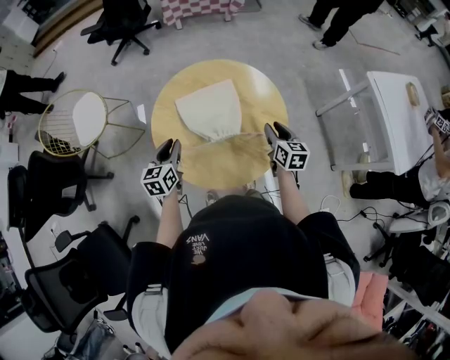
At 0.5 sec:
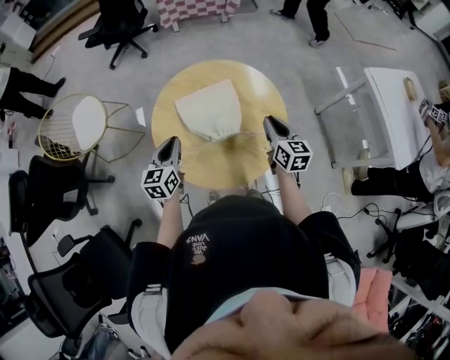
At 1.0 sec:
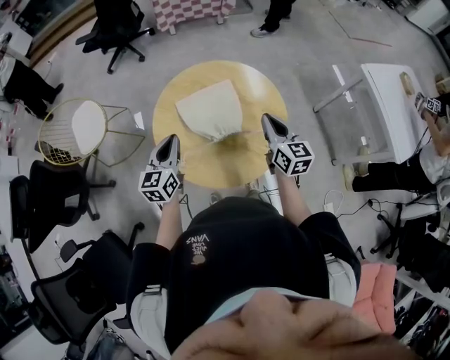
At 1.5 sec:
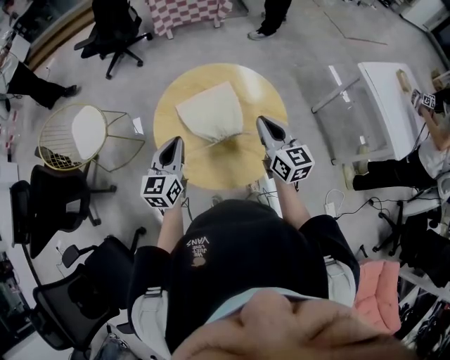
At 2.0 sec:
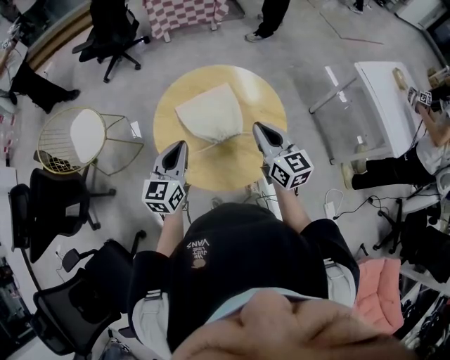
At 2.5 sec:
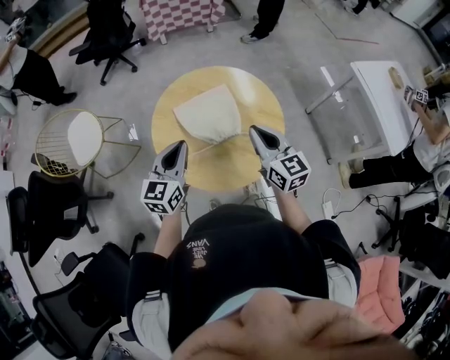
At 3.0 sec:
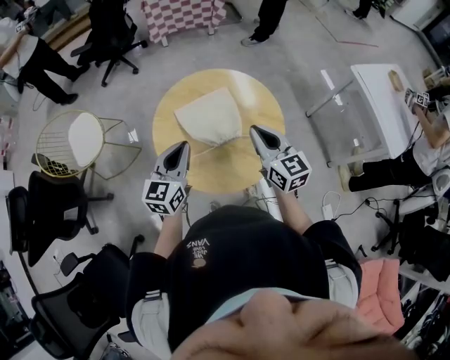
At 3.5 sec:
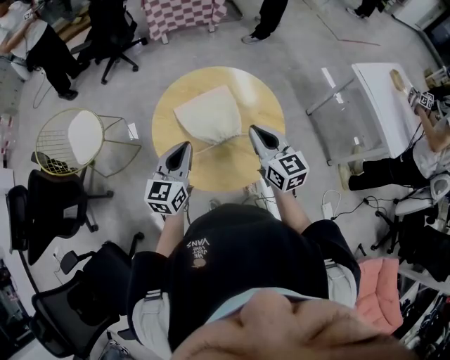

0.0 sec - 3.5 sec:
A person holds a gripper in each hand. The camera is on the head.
0.0 sec - 2.0 sec: The left gripper shifts about 10 cm upward, swivels about 20 degrees, and closes up, while the right gripper heads upward, to the left and backward, covering some 20 cm, rotates approximately 20 degrees, and closes up.
2.0 sec - 3.5 sec: There are only small adjustments of the grippers.

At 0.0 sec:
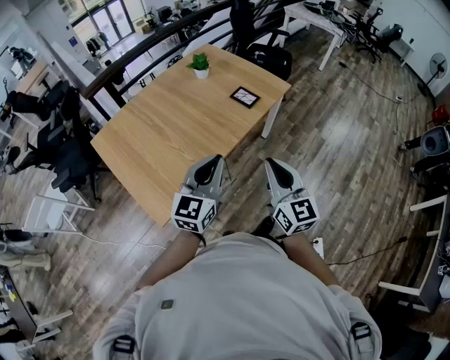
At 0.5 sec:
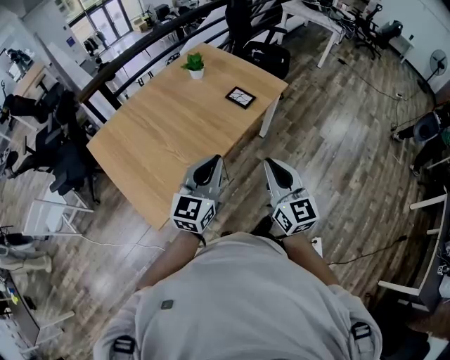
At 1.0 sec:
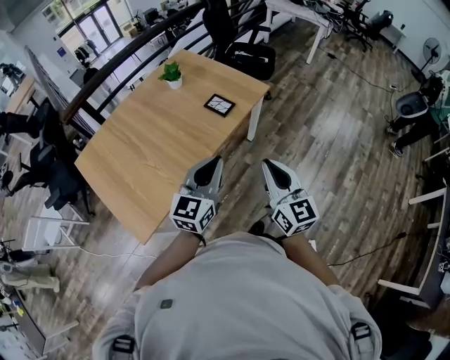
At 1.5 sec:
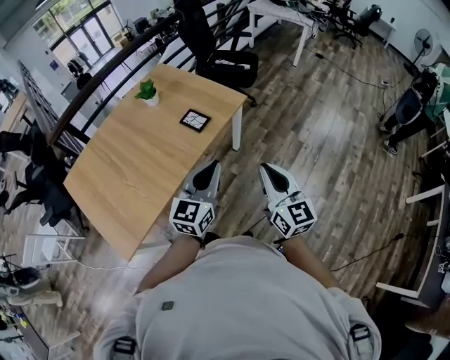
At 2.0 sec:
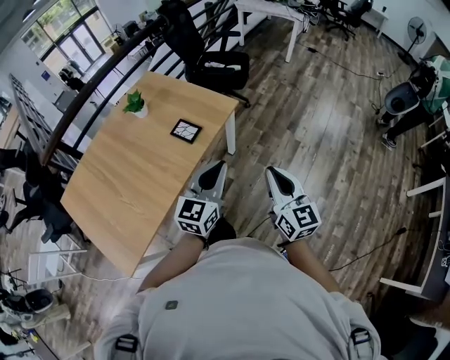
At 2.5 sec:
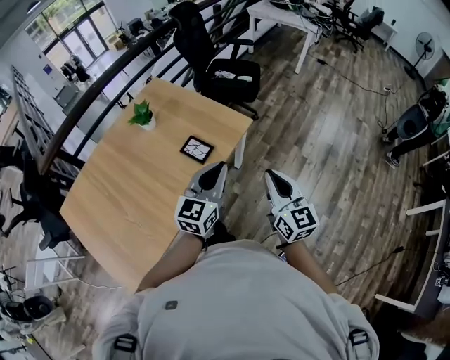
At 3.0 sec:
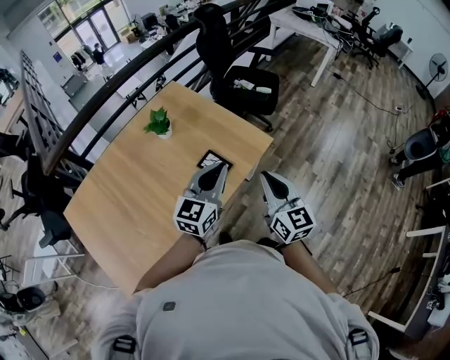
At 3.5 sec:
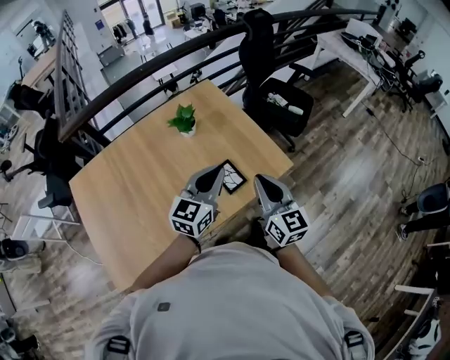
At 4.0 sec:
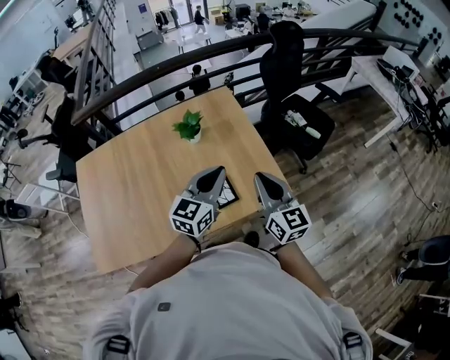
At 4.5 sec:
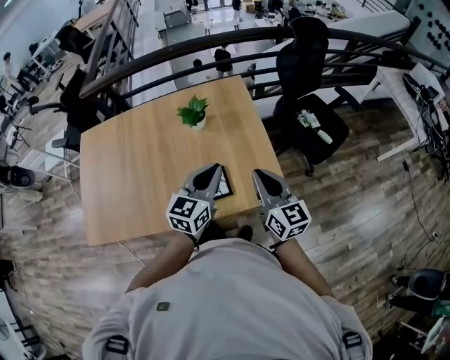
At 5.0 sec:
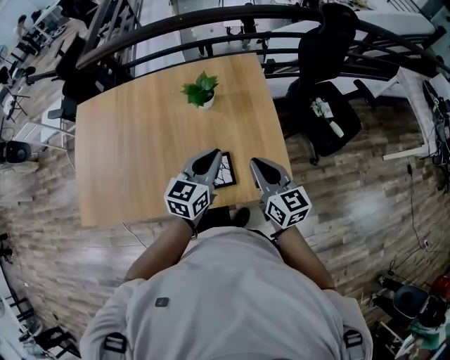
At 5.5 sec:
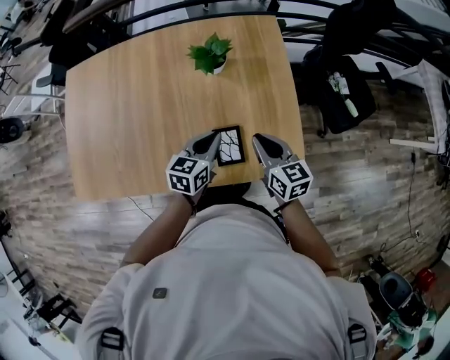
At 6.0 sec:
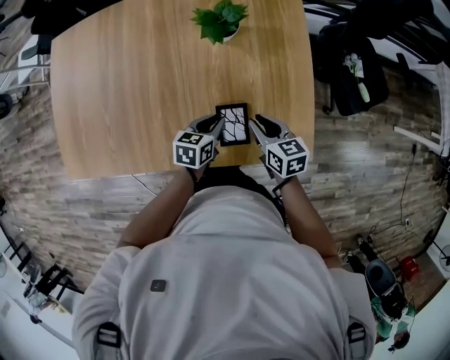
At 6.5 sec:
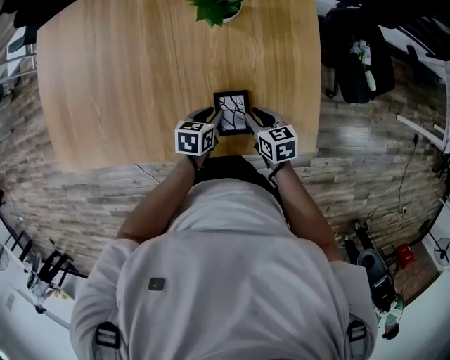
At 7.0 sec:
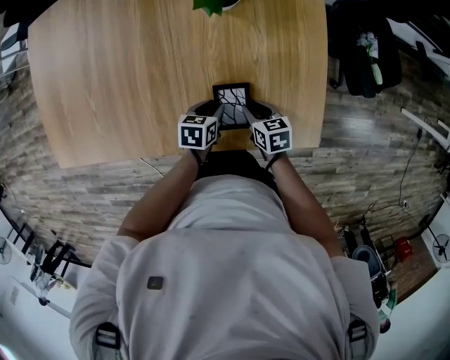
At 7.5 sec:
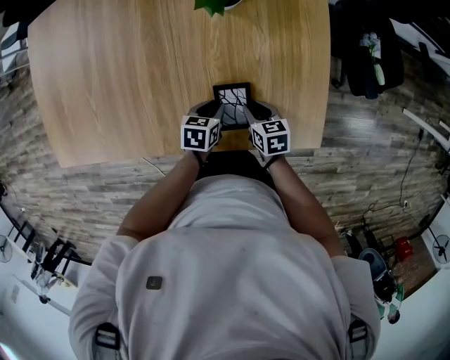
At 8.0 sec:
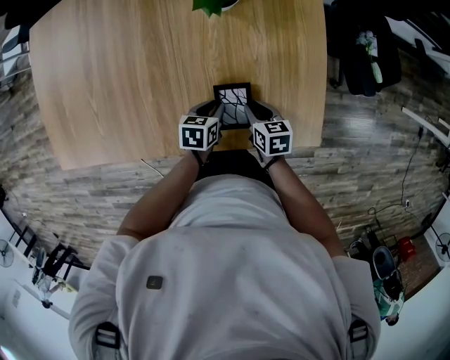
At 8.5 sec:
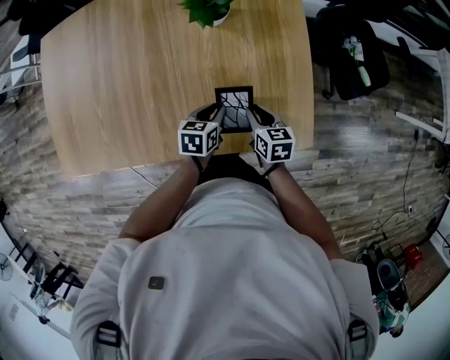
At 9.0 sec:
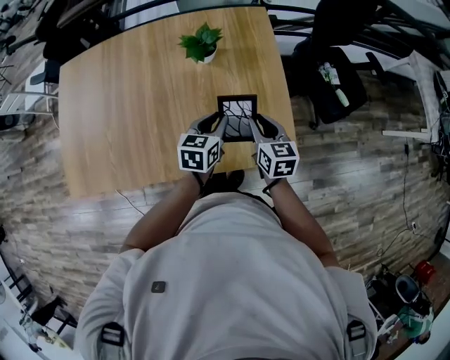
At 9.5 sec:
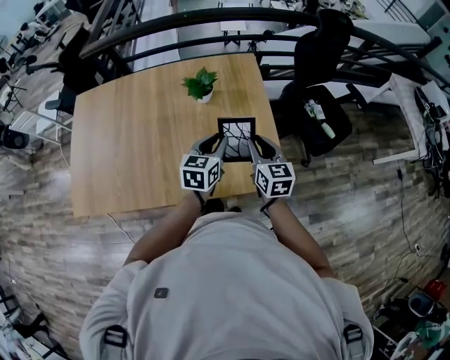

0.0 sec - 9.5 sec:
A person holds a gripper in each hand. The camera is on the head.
0.0 sec - 2.0 sec: The grippers both shift to the right and forward by some 35 cm.
2.0 sec - 4.0 sec: Both grippers are carried about 40 cm. The left gripper changes its angle by roughly 30 degrees. Meanwhile the right gripper changes its angle by approximately 40 degrees.
4.0 sec - 5.5 sec: The left gripper heads downward, covering roughly 20 cm, and rotates some 30 degrees, while the right gripper is displaced downward and forward by some 20 cm, and rotates roughly 30 degrees.
5.5 sec - 7.5 sec: Both grippers move downward, roughly 25 cm. The right gripper swivels about 30 degrees. Meanwhile the left gripper rotates some 30 degrees, and opens up.
7.5 sec - 9.5 sec: Both grippers travel together upward, roughly 30 cm. The right gripper tilts its fingers approximately 30 degrees upward. Meanwhile the left gripper tips its fingers upward by about 30 degrees.

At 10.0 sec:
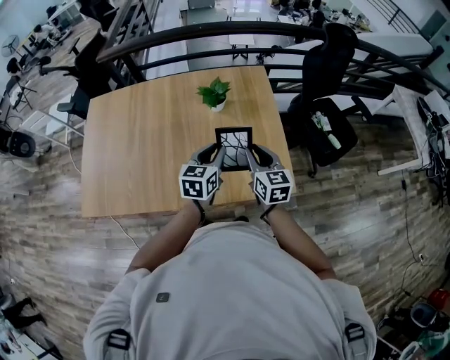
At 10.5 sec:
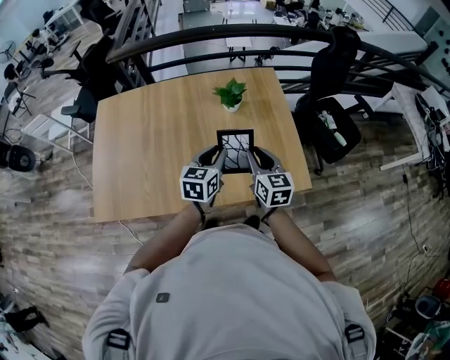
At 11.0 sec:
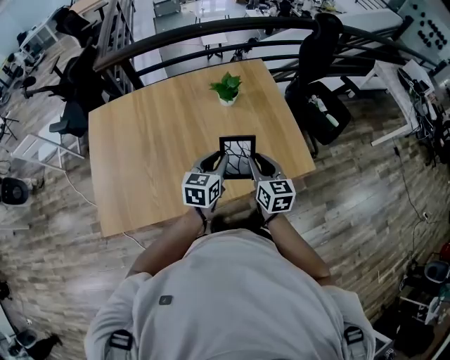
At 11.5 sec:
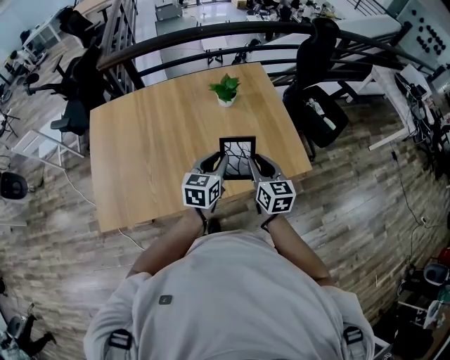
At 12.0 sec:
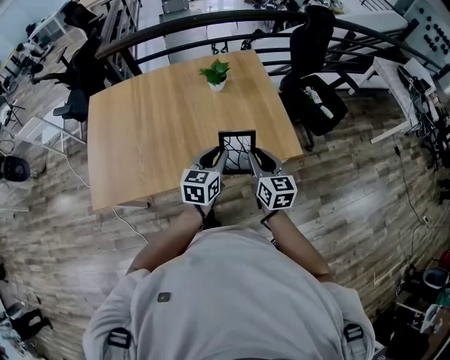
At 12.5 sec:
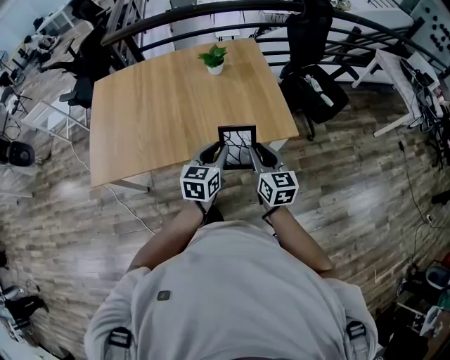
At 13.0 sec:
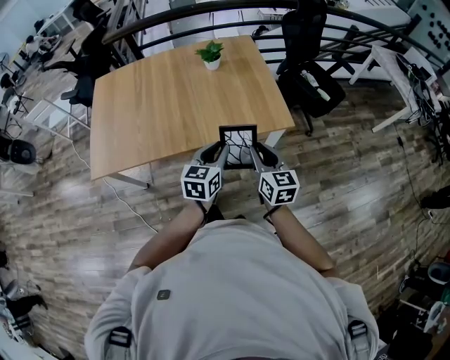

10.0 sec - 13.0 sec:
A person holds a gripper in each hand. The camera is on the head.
10.0 sec - 11.5 sec: The left gripper shifts some 15 cm to the left and backward. Meanwhile the right gripper travels backward and to the left by roughly 15 cm.
11.5 sec - 13.0 sec: Both grippers move backward and to the right, roughly 25 cm.

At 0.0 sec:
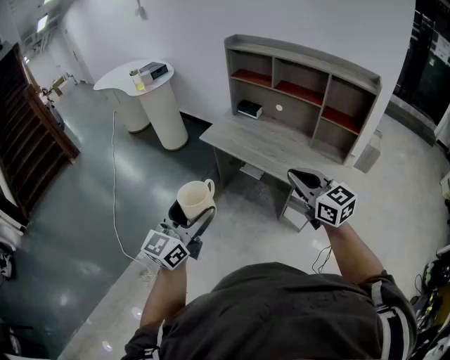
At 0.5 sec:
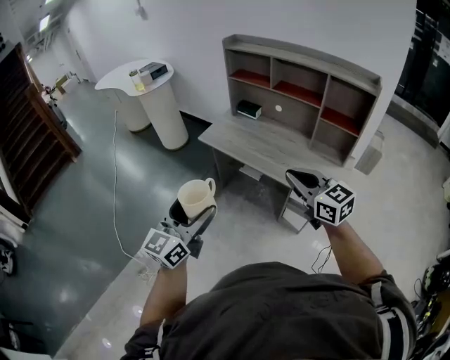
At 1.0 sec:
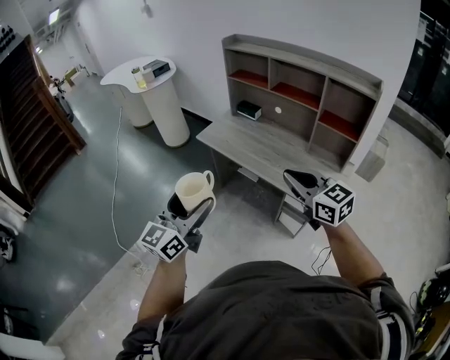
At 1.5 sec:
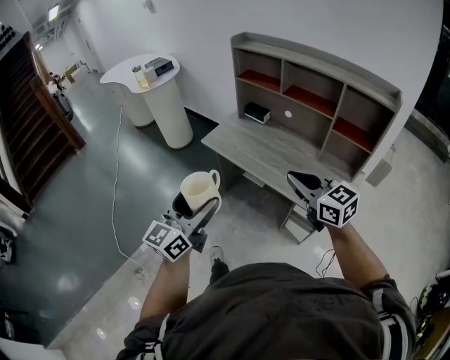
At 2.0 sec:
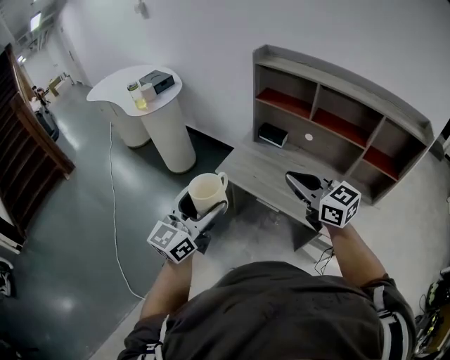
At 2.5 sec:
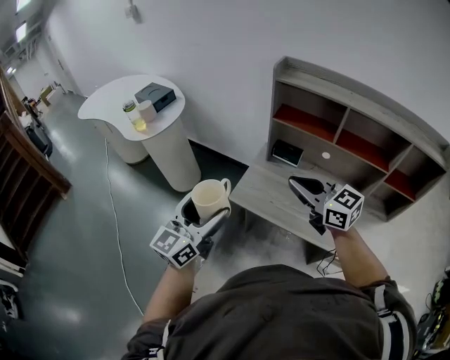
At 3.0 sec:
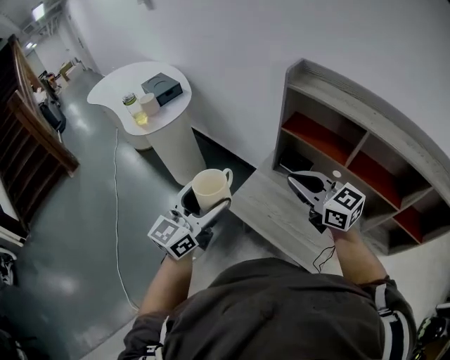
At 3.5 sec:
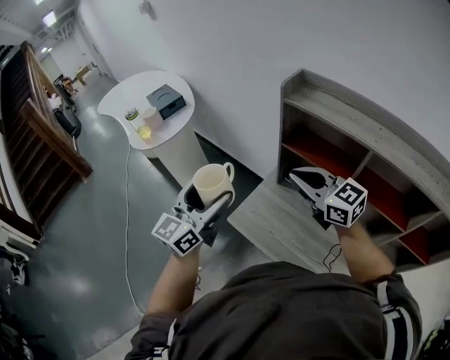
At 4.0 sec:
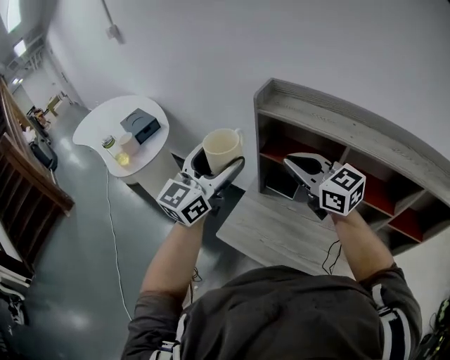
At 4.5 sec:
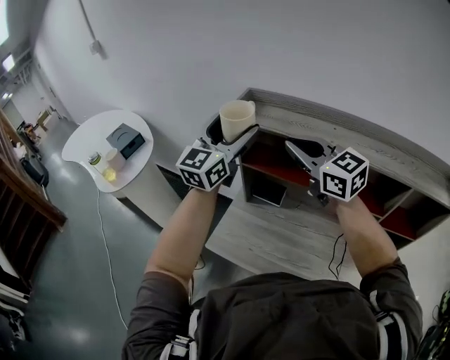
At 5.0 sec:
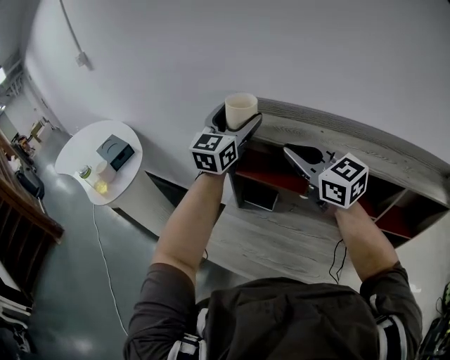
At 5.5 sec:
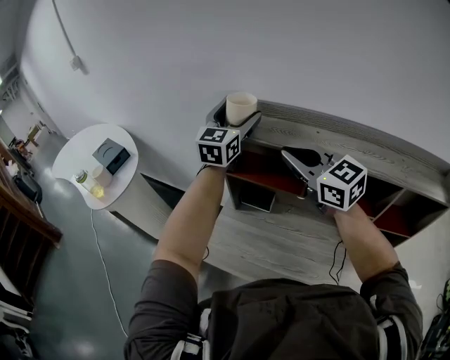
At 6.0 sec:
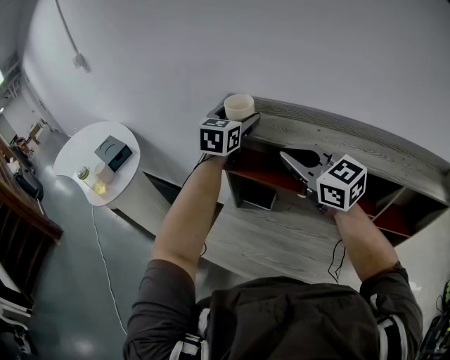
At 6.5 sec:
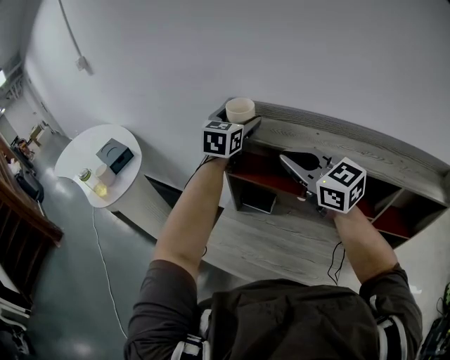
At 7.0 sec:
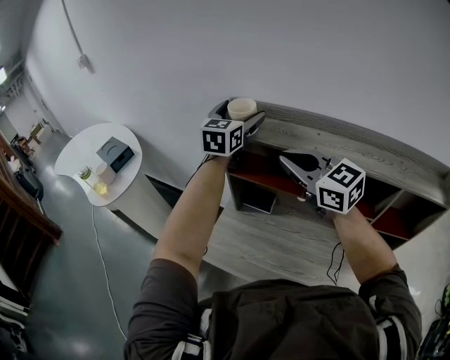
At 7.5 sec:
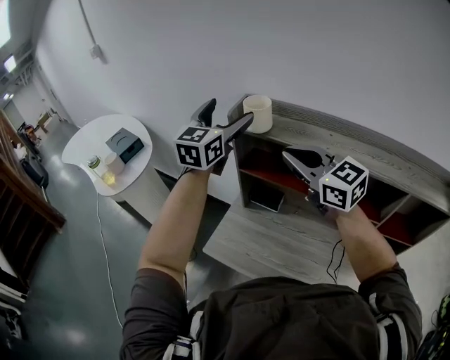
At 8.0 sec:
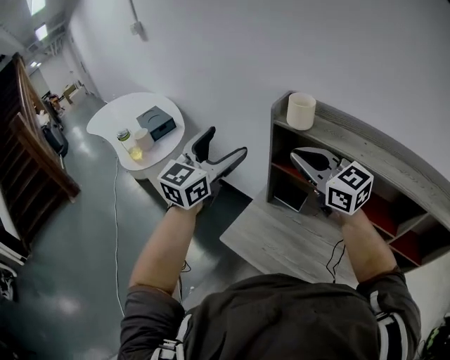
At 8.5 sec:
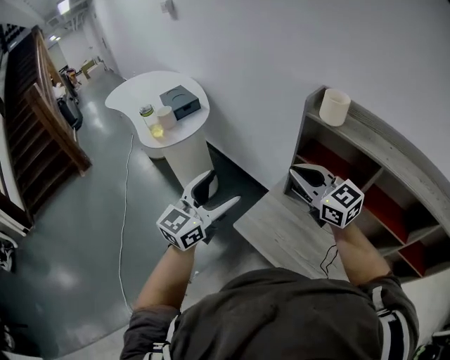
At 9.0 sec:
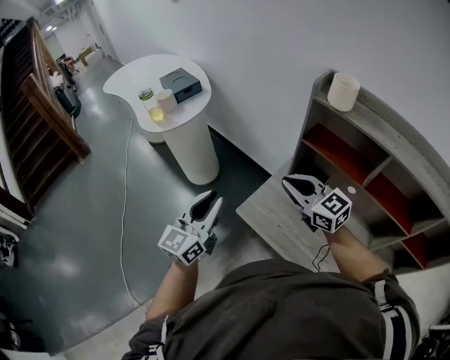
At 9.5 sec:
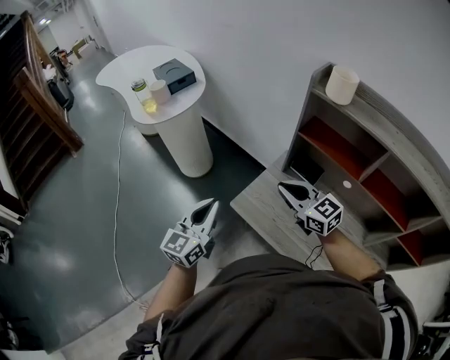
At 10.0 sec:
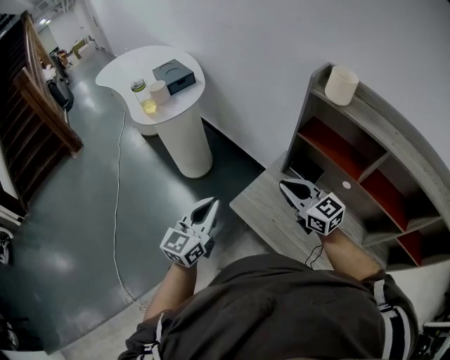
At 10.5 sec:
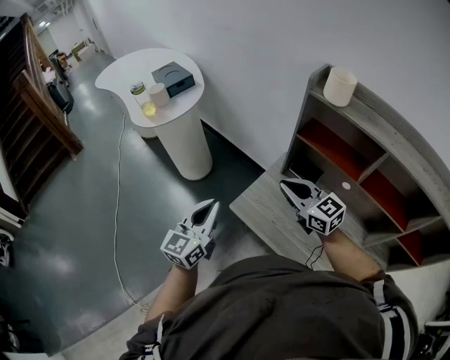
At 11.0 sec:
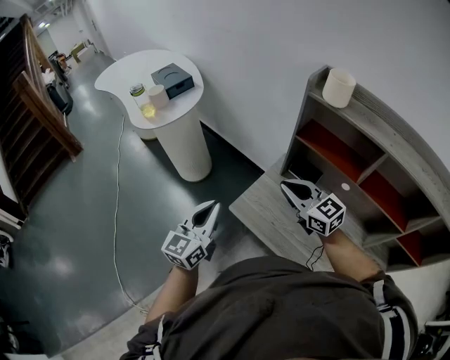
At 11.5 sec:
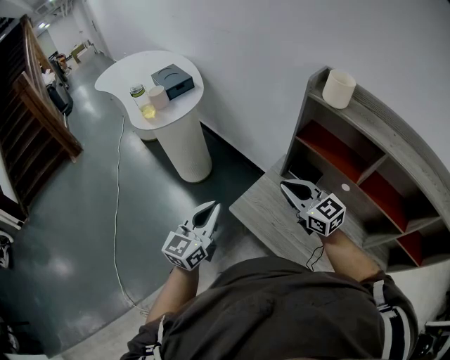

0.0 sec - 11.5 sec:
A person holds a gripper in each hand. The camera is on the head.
0.0 sec - 2.0 sec: Both grippers move forward, roughly 30 cm.
2.0 sec - 4.0 sec: The grippers both shift forward by approximately 40 cm.
4.0 sec - 6.0 sec: The right gripper shifts some 10 cm to the right. Meanwhile the left gripper goes roughly 25 cm forward and to the right, and swivels roughly 20 degrees.
6.0 sec - 7.5 sec: The left gripper shifts roughly 10 cm to the left, upward and backward.
7.5 sec - 9.5 sec: The right gripper moves downward and to the left, about 30 cm, and changes its angle by some 20 degrees. Meanwhile the left gripper is displaced to the left, downward and backward by some 50 cm, rotates about 30 degrees, and closes.
9.5 sec - 11.5 sec: The grippers stay close to where they were, moving slightly.
